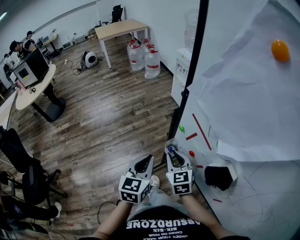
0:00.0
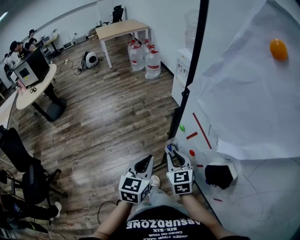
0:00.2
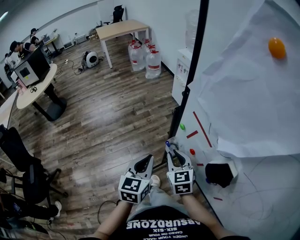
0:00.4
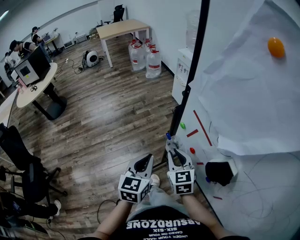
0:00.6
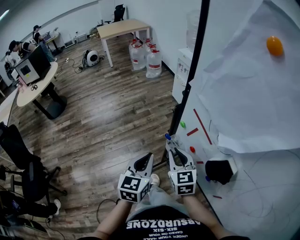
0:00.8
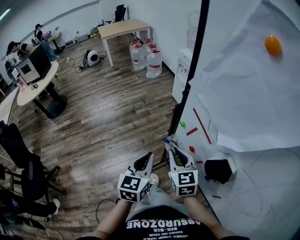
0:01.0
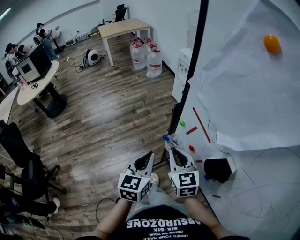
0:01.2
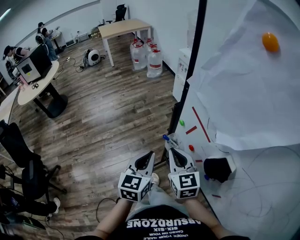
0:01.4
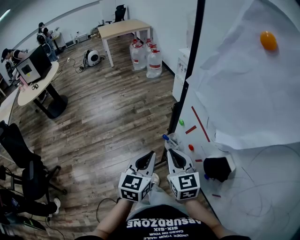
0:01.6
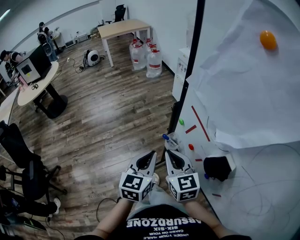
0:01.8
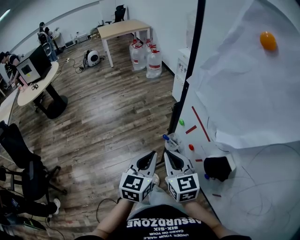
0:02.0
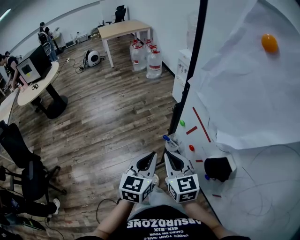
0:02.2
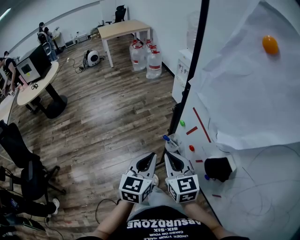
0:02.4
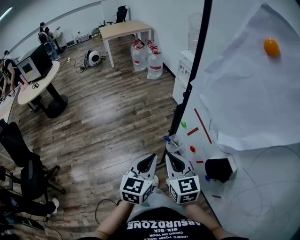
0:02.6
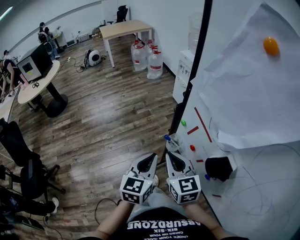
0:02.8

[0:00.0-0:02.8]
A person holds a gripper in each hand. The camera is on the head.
0:00.0 to 0:01.4: The right gripper moves upward, some 5 cm.
0:01.4 to 0:02.8: There are only small adjustments of the grippers.

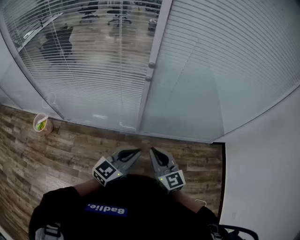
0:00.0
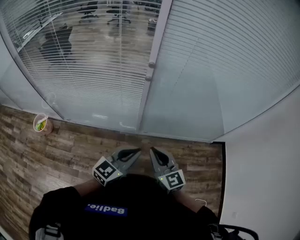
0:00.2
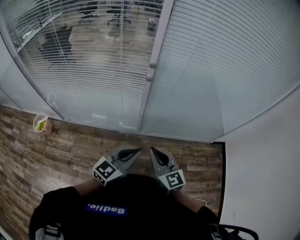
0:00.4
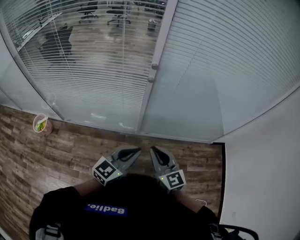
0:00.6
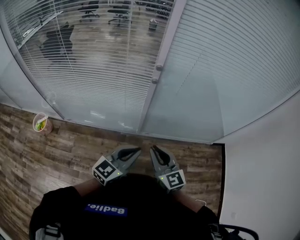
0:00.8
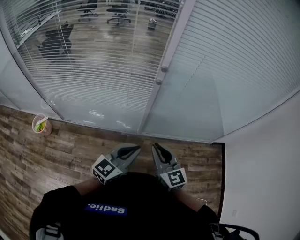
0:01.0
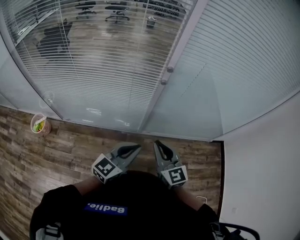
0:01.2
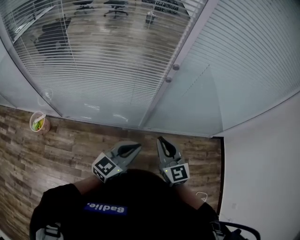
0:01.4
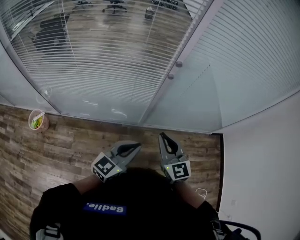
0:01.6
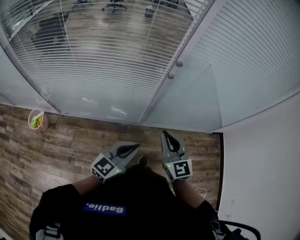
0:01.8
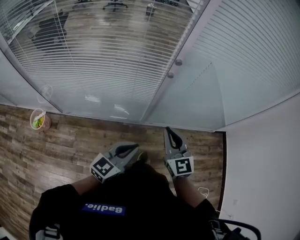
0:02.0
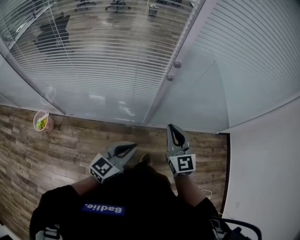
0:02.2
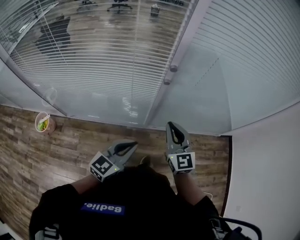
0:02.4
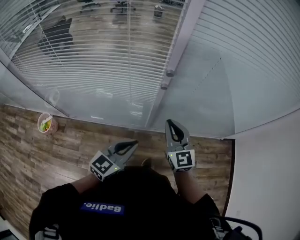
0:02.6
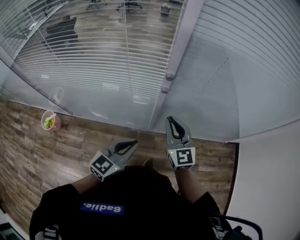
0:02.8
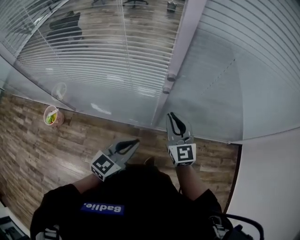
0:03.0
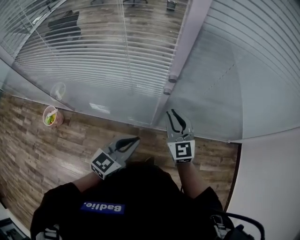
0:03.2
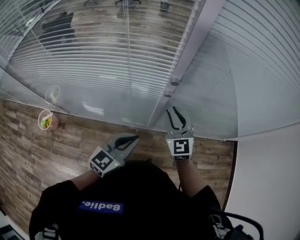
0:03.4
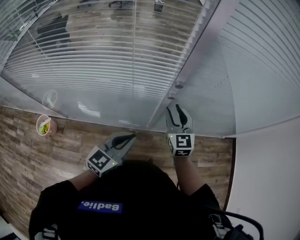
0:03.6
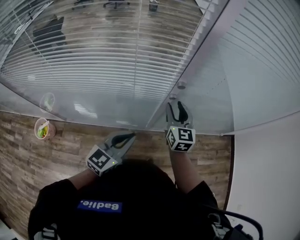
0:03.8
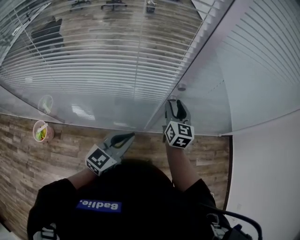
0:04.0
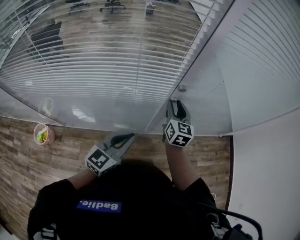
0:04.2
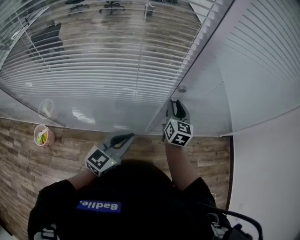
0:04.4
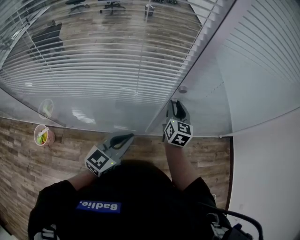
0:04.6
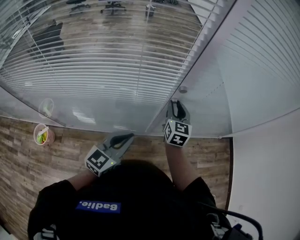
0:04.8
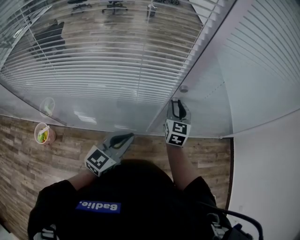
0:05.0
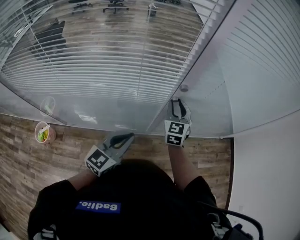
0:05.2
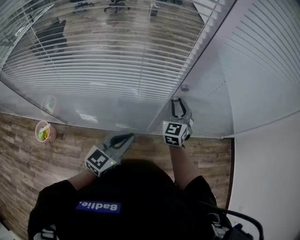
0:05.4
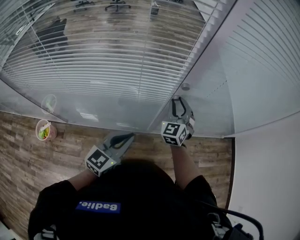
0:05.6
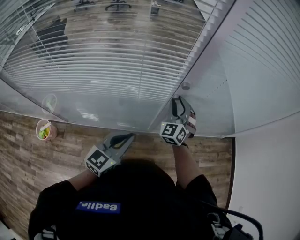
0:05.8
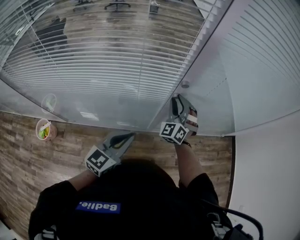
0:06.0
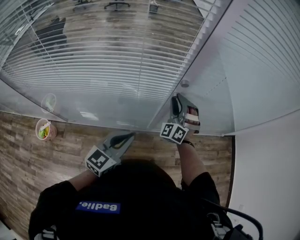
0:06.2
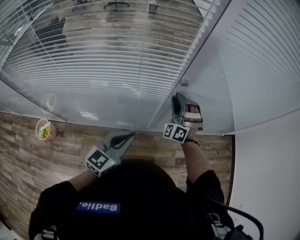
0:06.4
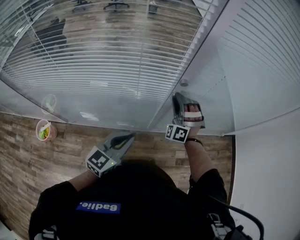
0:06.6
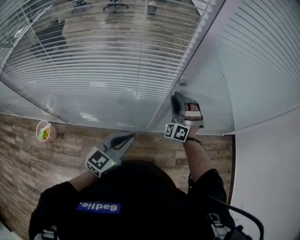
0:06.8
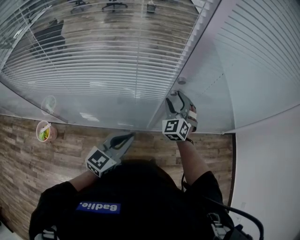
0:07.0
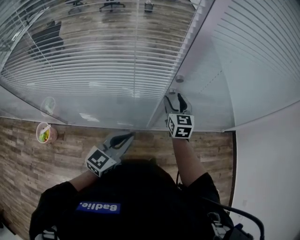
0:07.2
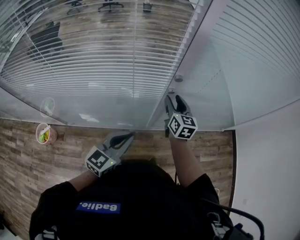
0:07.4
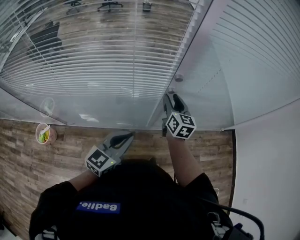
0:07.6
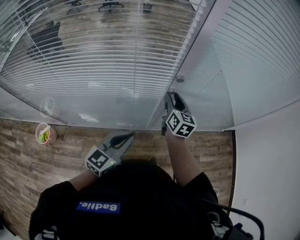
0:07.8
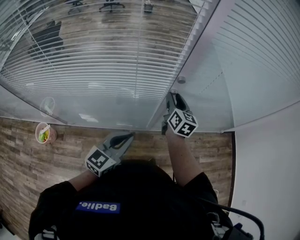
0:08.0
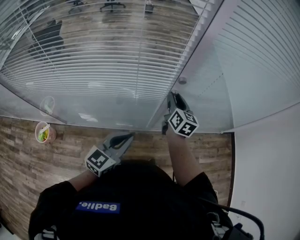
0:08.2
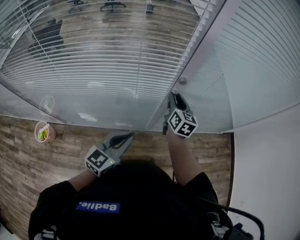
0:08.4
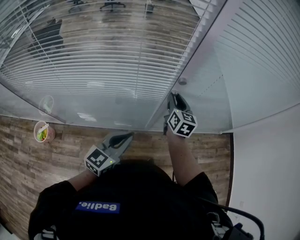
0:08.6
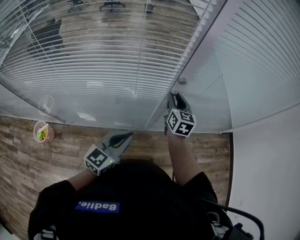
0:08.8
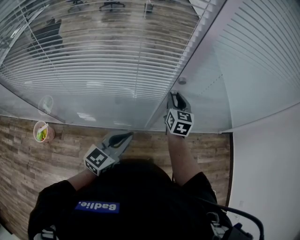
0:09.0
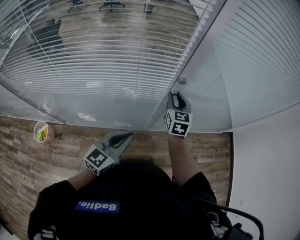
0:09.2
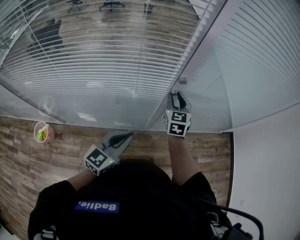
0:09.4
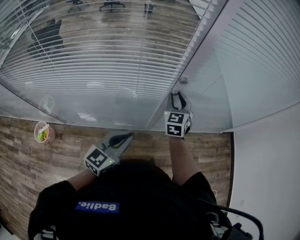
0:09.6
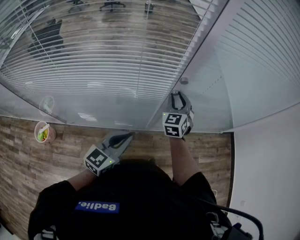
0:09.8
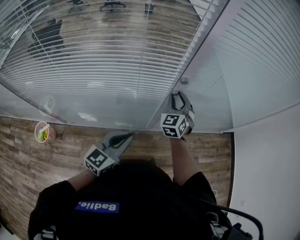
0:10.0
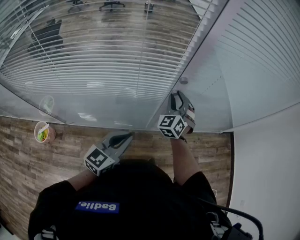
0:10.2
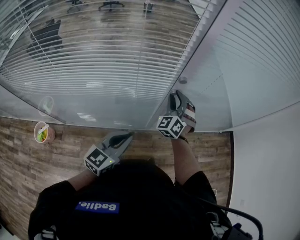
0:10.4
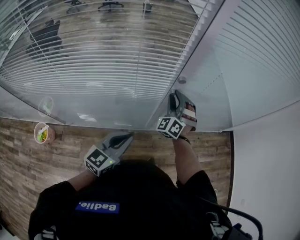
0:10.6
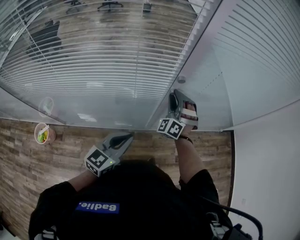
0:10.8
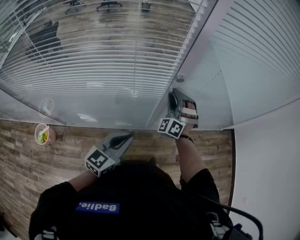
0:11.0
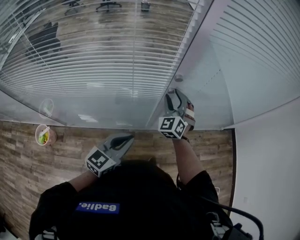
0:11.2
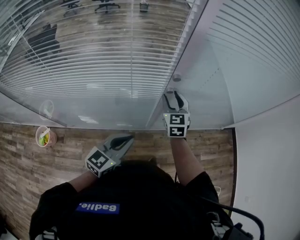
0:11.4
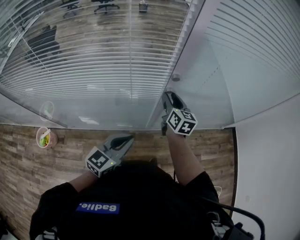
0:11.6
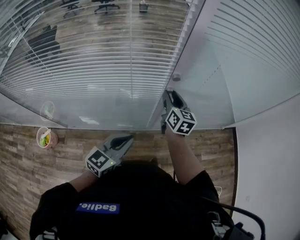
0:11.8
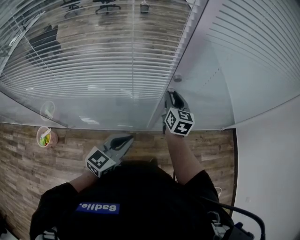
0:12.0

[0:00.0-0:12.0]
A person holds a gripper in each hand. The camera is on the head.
0:00.0 to 0:01.6: Both grippers travel together to the left, about 10 cm.
0:01.6 to 0:03.0: The left gripper shifts approximately 10 cm forward. The right gripper goes approximately 20 cm forward.
0:03.0 to 0:04.4: The left gripper heads to the left, covering roughly 10 cm. The right gripper travels forward by roughly 10 cm, swivels about 30 degrees, and opens its fingers.
0:04.4 to 0:06.0: The right gripper rotates around the line of its fingers by about 60 degrees, counterclockwise from behind.
0:06.0 to 0:07.6: The right gripper twists roughly 70 degrees clockwise, seen from behind.
0:07.6 to 0:09.0: The grippers move only a little.
0:09.0 to 0:10.4: The right gripper rolls counterclockwise, seen from behind, by approximately 60 degrees.
0:10.4 to 0:12.0: The right gripper rotates around the line of its fingers by about 70 degrees, clockwise from behind.

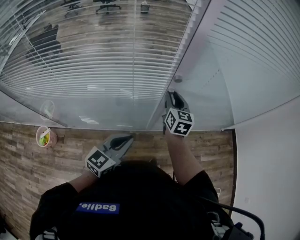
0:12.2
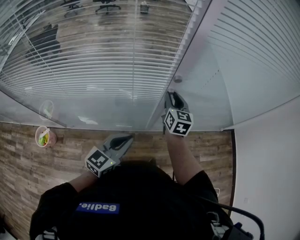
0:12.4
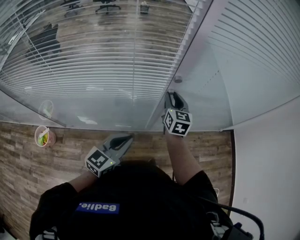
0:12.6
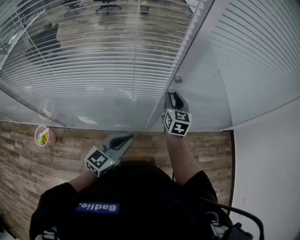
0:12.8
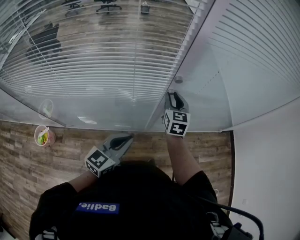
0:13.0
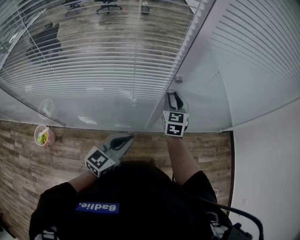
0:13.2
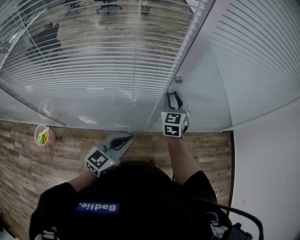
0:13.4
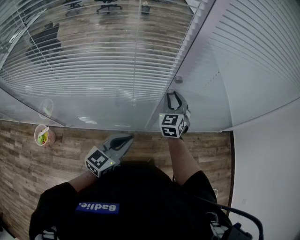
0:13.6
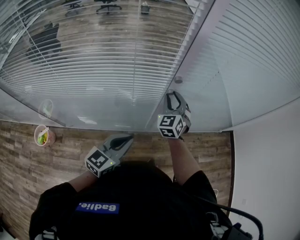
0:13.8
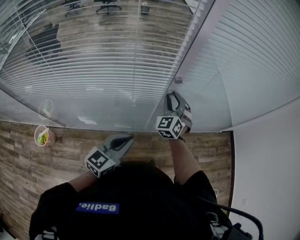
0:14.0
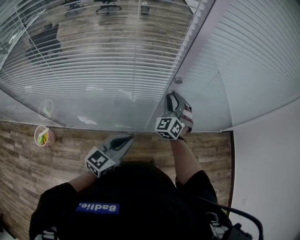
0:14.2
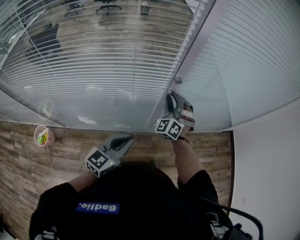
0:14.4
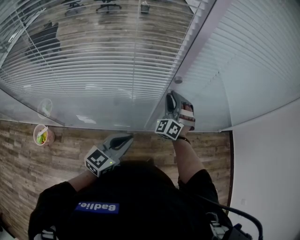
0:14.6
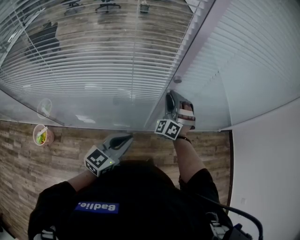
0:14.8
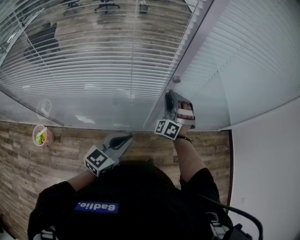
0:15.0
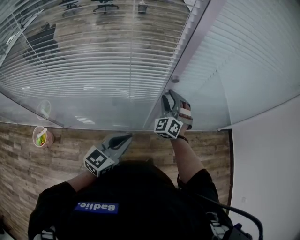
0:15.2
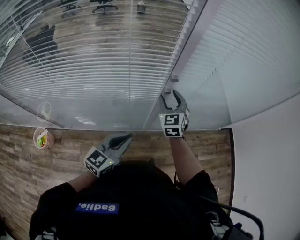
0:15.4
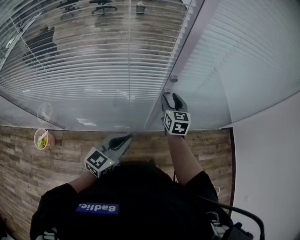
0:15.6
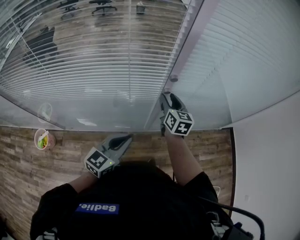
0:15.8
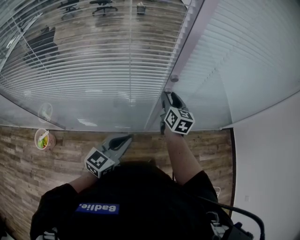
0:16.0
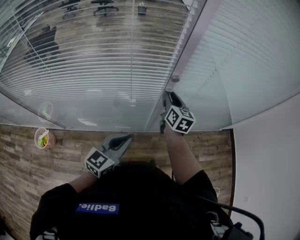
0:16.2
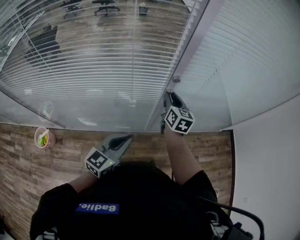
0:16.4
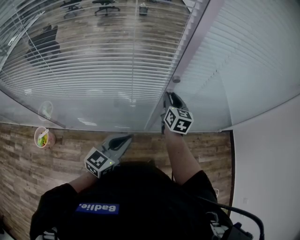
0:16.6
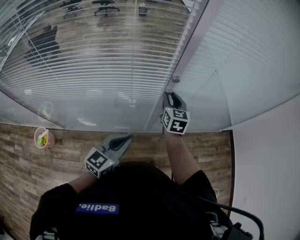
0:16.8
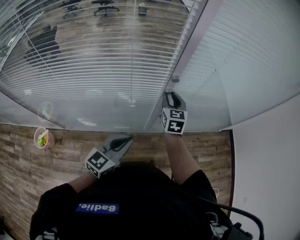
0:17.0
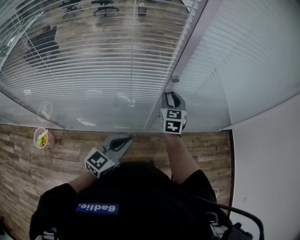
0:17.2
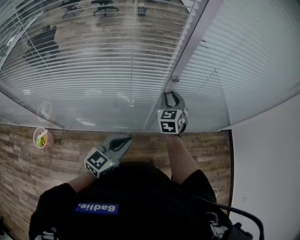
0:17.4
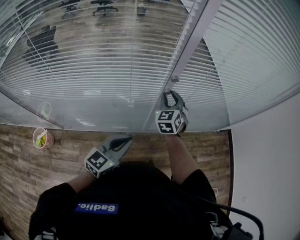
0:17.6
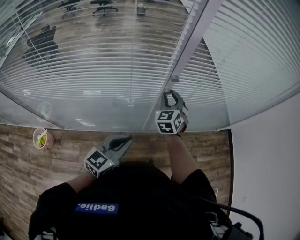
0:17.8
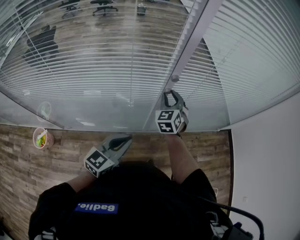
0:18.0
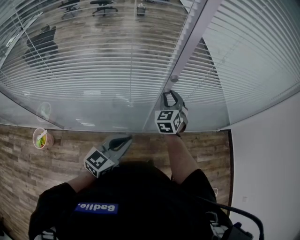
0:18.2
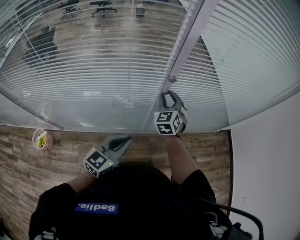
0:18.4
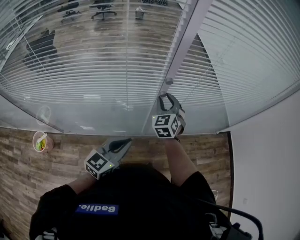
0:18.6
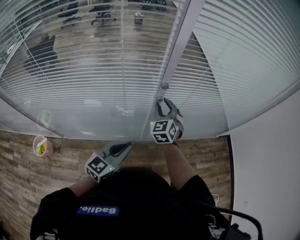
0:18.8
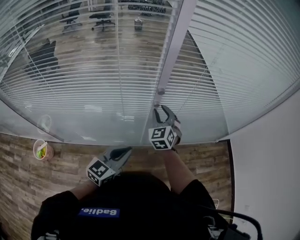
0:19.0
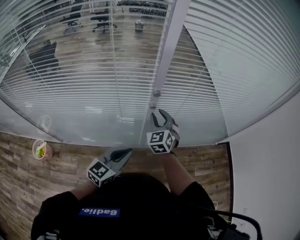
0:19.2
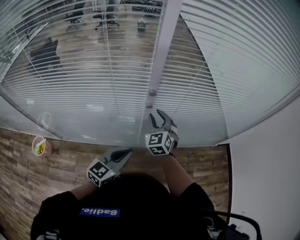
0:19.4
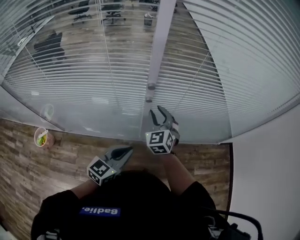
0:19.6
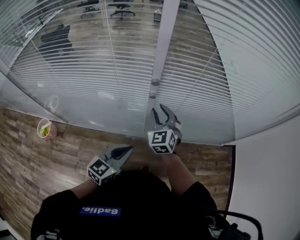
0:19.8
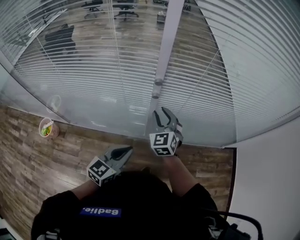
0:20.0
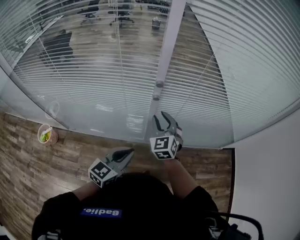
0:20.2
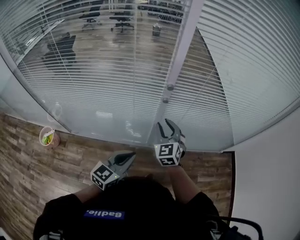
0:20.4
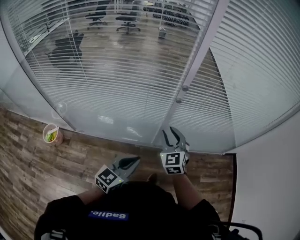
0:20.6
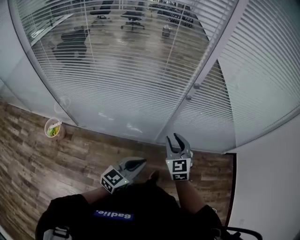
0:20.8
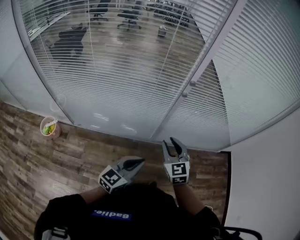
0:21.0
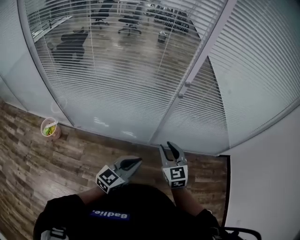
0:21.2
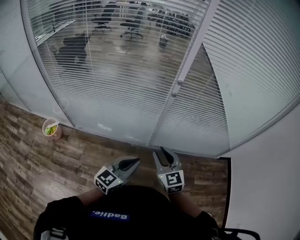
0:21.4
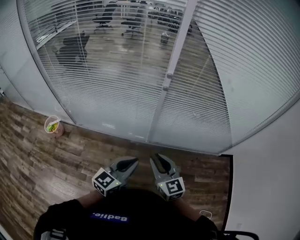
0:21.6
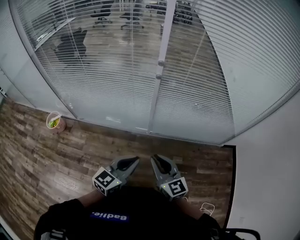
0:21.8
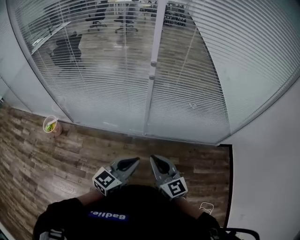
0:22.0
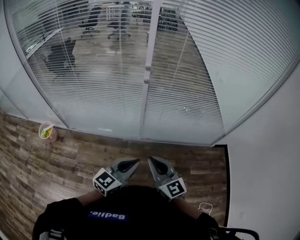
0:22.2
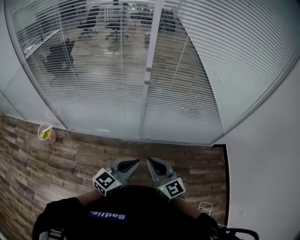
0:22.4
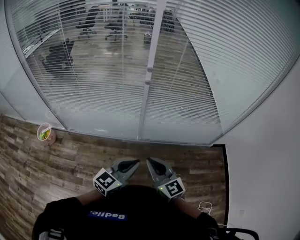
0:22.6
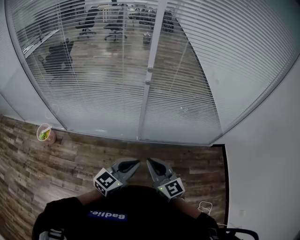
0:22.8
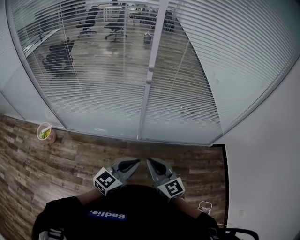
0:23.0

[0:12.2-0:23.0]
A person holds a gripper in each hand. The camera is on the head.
0:12.2 to 0:13.8: The right gripper rotates around the line of its fingers by some 40 degrees, counterclockwise from behind.
0:13.8 to 0:15.2: The right gripper turns by about 20 degrees.
0:15.2 to 0:16.8: The right gripper rolls clockwise, seen from behind, by about 60 degrees.
0:16.8 to 0:18.4: The right gripper changes its angle by some 30 degrees.
0:18.4 to 0:20.0: The left gripper heads to the right, covering some 10 cm. The right gripper ends up approximately 5 cm from where it was.
0:20.0 to 0:21.4: The right gripper travels backward by some 25 cm. Meanwhile the left gripper goes some 15 cm backward.
0:21.4 to 0:23.0: The left gripper is displaced to the right and backward by about 10 cm; the right gripper goes about 10 cm backward and to the right, and closes up.
